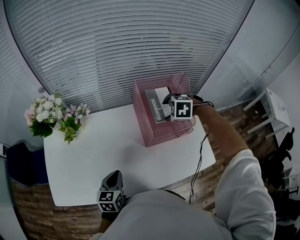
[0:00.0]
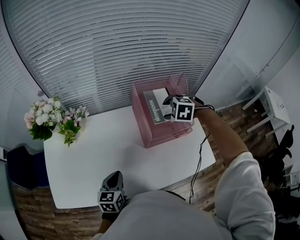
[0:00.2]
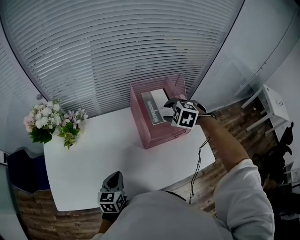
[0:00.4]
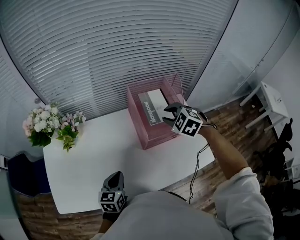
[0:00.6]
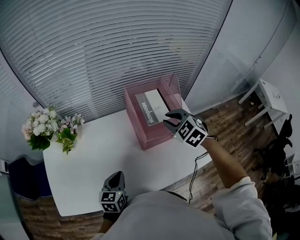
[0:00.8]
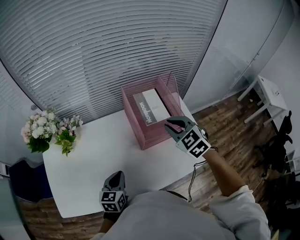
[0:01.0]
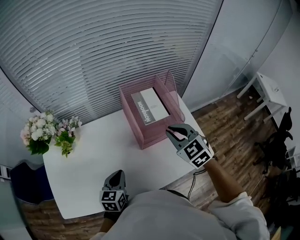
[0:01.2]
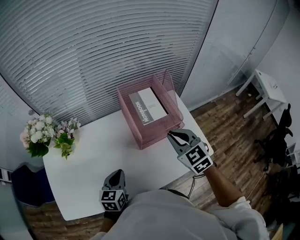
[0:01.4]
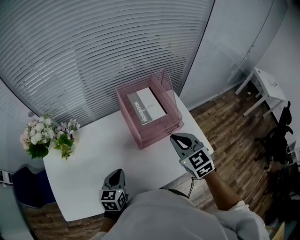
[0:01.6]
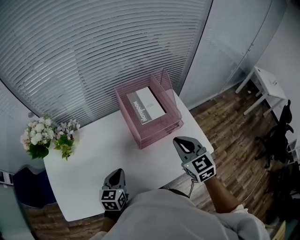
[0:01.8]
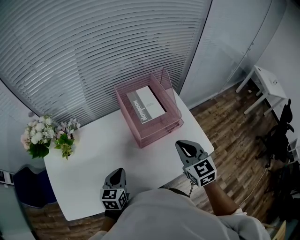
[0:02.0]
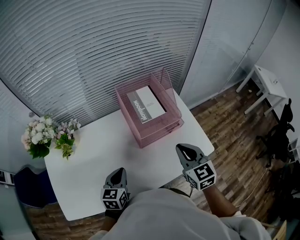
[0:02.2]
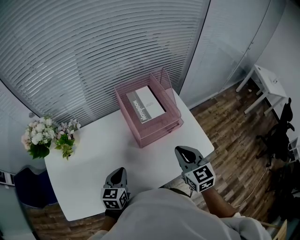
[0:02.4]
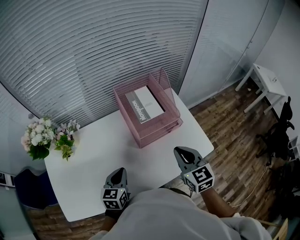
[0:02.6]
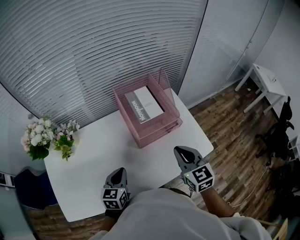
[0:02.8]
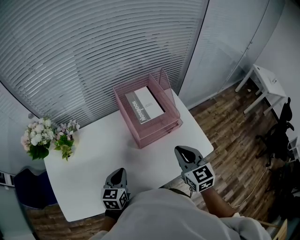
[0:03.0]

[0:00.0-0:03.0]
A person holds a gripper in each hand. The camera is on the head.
0:00.0 to 0:01.6: The right gripper ends up approximately 20 cm from where it was, tilts its fingers approximately 50 degrees upward, and closes. The left gripper moves some 5 cm.
0:01.6 to 0:03.0: The right gripper is displaced backward by some 5 cm.

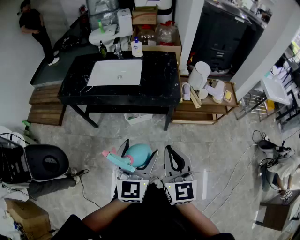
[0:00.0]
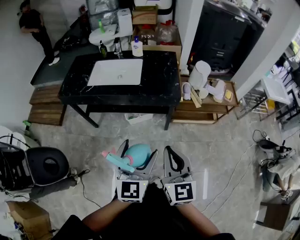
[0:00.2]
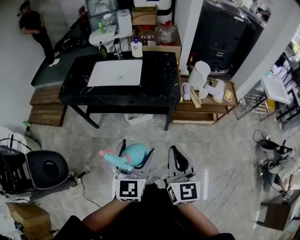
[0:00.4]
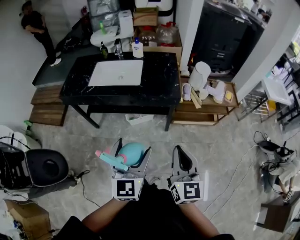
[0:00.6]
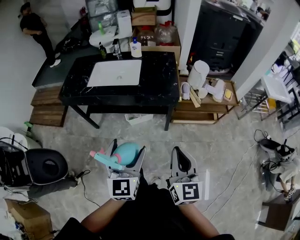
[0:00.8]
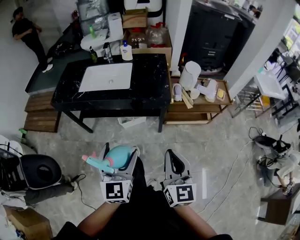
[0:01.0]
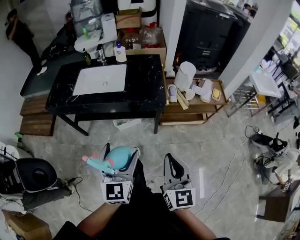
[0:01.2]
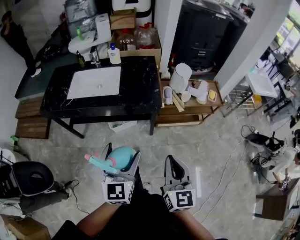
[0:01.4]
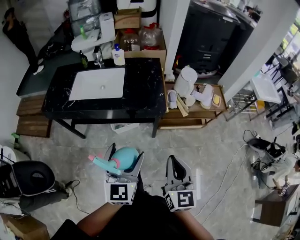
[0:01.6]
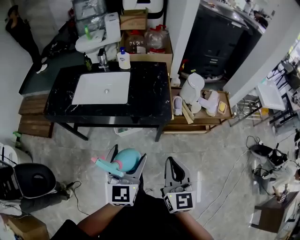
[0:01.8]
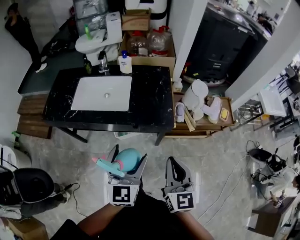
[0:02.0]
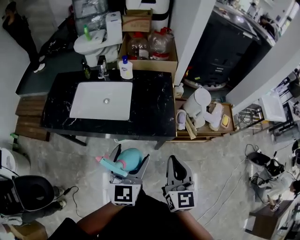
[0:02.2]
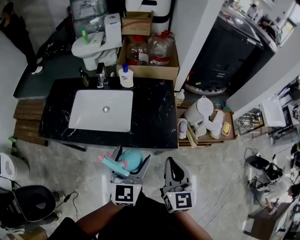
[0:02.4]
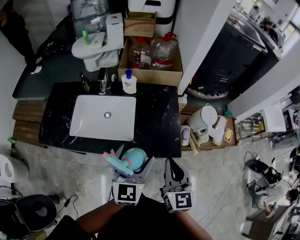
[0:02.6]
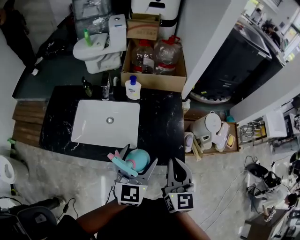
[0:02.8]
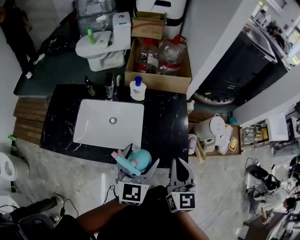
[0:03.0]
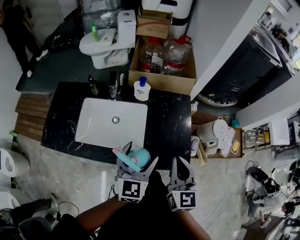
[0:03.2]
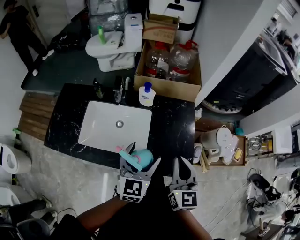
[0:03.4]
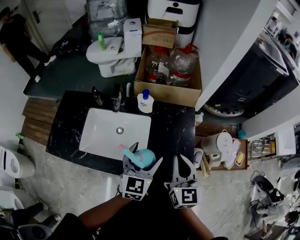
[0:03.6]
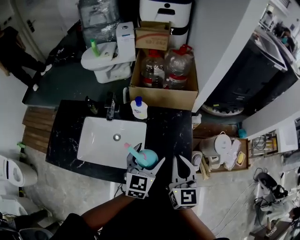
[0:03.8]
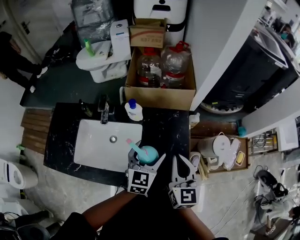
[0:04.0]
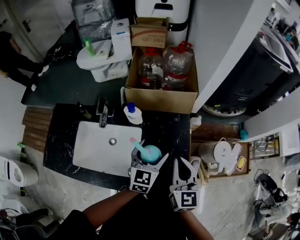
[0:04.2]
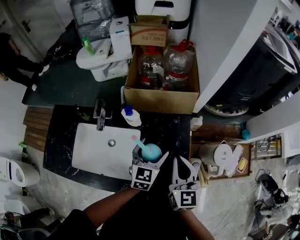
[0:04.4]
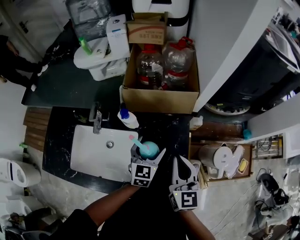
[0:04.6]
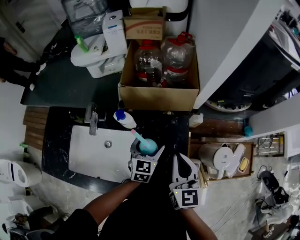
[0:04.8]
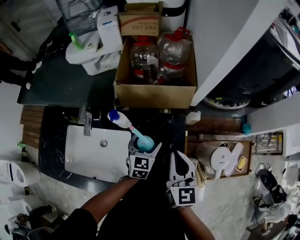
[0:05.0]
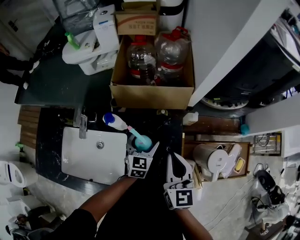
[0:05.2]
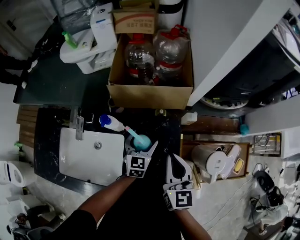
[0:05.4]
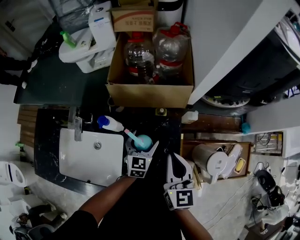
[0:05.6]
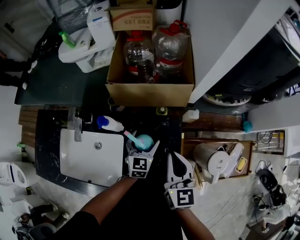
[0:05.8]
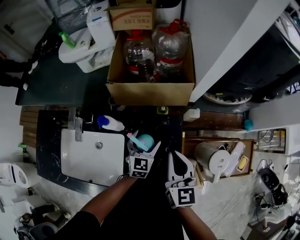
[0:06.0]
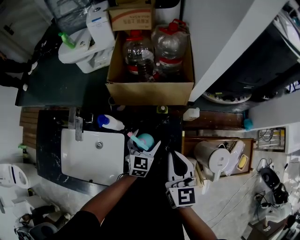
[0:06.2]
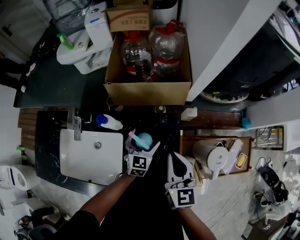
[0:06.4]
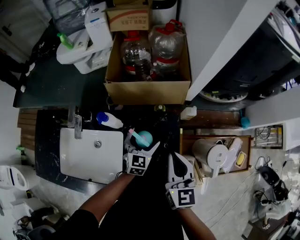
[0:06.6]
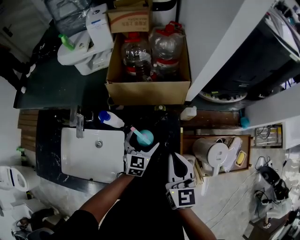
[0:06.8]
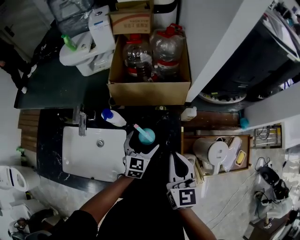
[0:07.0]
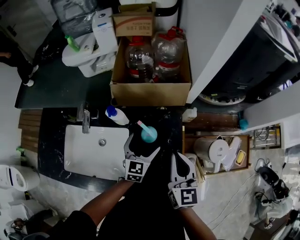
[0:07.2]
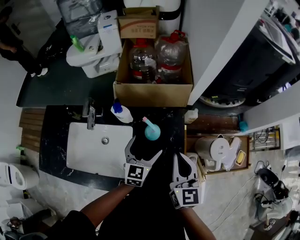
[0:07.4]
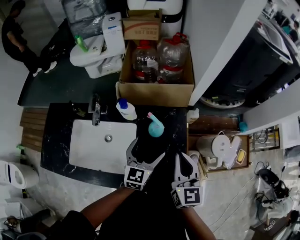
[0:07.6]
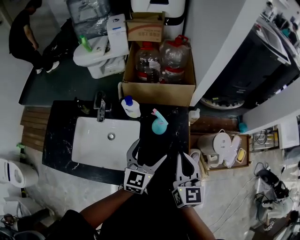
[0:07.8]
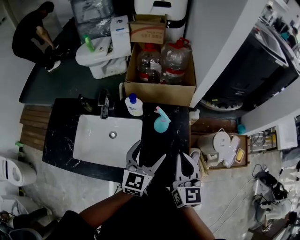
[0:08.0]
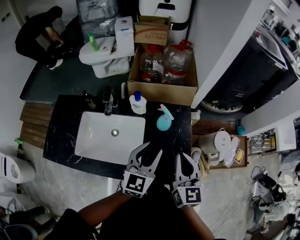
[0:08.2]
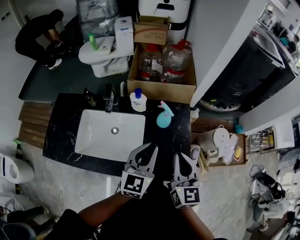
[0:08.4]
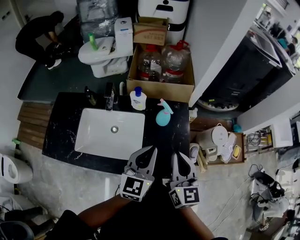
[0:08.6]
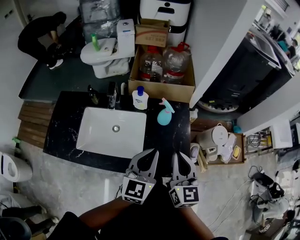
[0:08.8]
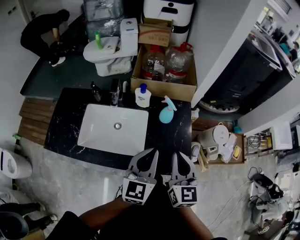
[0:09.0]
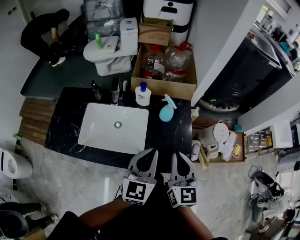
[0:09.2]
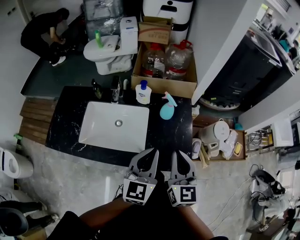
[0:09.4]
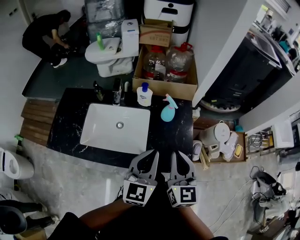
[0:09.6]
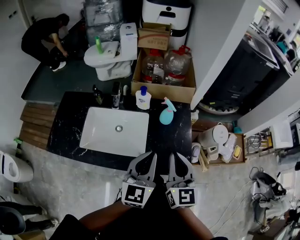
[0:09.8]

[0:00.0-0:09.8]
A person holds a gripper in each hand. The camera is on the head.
0:00.0 to 0:01.4: The left gripper goes about 5 cm forward, while the right gripper travels to the right by roughly 10 cm.
0:01.4 to 0:02.8: Both grippers move forward, roughly 35 cm.
0:02.8 to 0:04.2: The left gripper is displaced forward and downward by approximately 20 cm; the right gripper travels forward by approximately 15 cm.
0:04.2 to 0:05.6: The left gripper moves downward and forward, approximately 20 cm. Meanwhile the right gripper heads forward, covering some 10 cm.
0:05.6 to 0:07.0: The grippers make only small movements.
0:07.0 to 0:08.4: The right gripper travels backward by some 15 cm. Meanwhile the left gripper goes about 25 cm upward and backward, and closes.
0:08.4 to 0:09.8: The two grippers go some 5 cm backward.

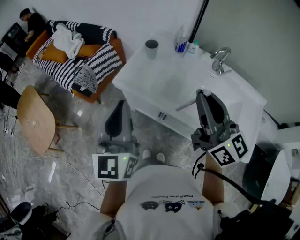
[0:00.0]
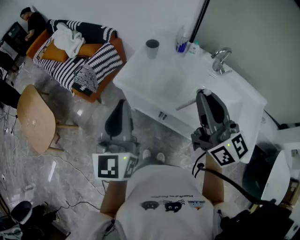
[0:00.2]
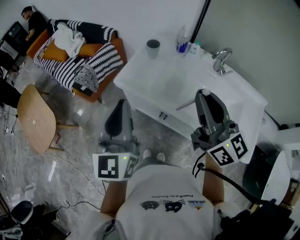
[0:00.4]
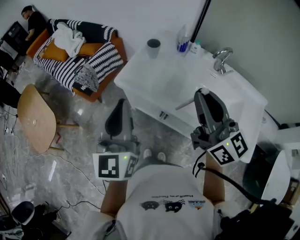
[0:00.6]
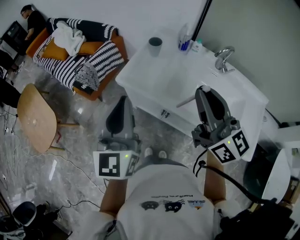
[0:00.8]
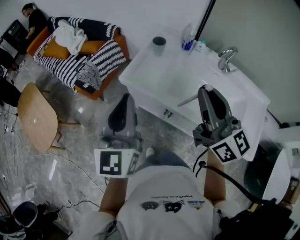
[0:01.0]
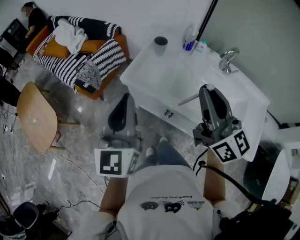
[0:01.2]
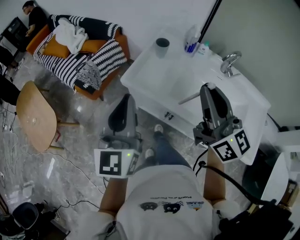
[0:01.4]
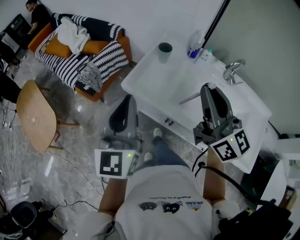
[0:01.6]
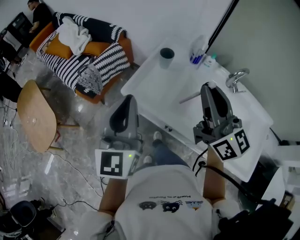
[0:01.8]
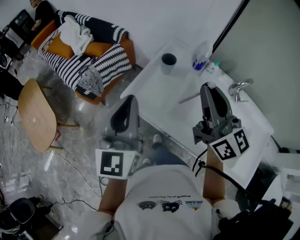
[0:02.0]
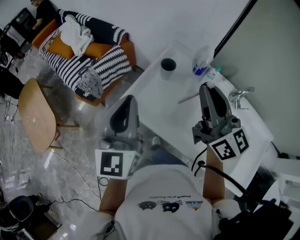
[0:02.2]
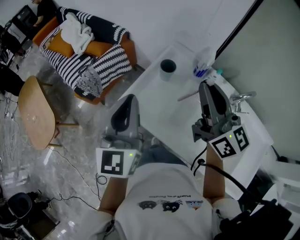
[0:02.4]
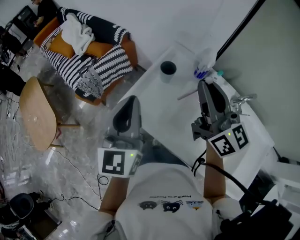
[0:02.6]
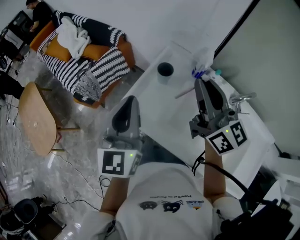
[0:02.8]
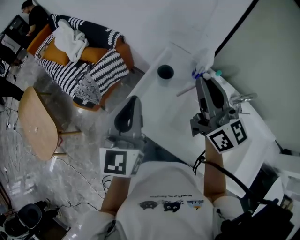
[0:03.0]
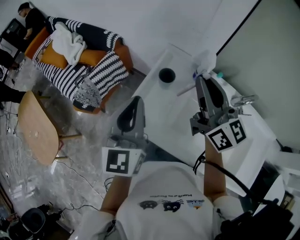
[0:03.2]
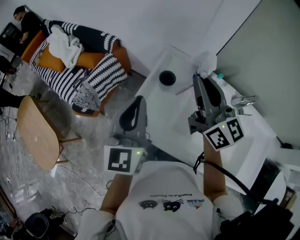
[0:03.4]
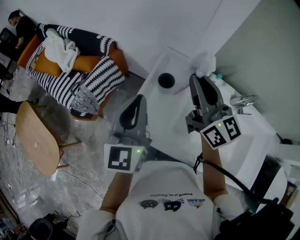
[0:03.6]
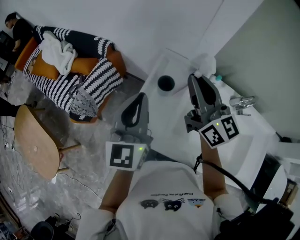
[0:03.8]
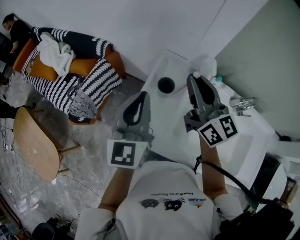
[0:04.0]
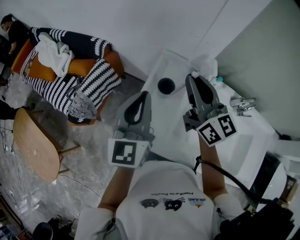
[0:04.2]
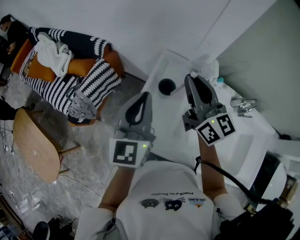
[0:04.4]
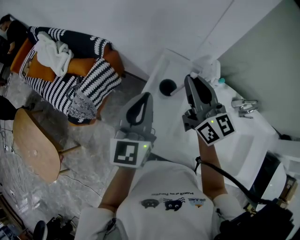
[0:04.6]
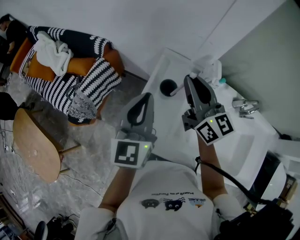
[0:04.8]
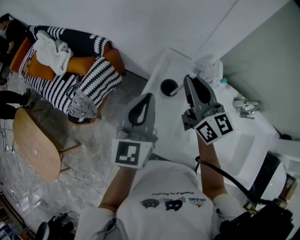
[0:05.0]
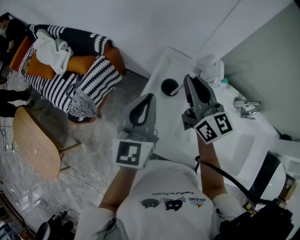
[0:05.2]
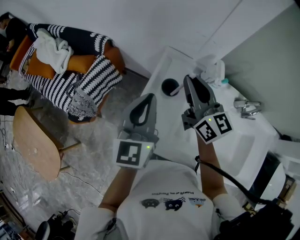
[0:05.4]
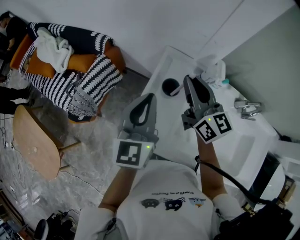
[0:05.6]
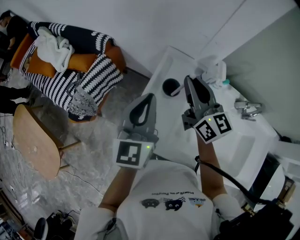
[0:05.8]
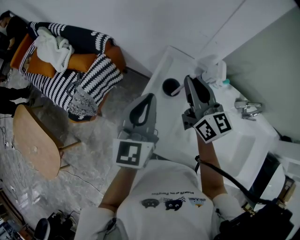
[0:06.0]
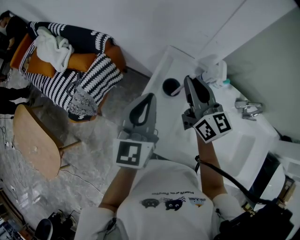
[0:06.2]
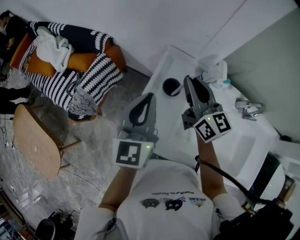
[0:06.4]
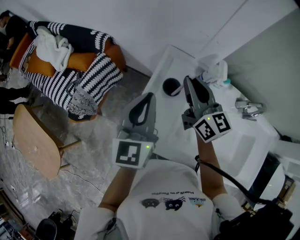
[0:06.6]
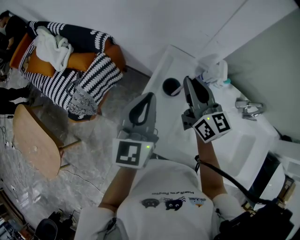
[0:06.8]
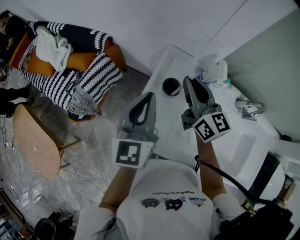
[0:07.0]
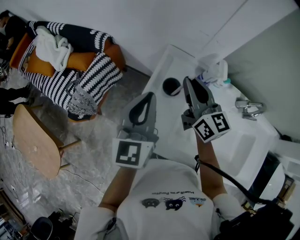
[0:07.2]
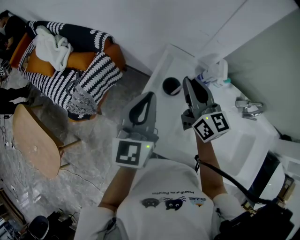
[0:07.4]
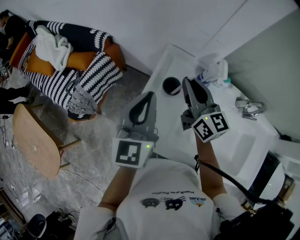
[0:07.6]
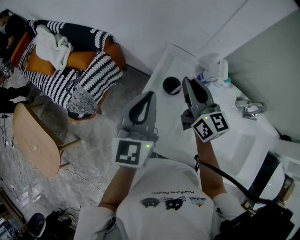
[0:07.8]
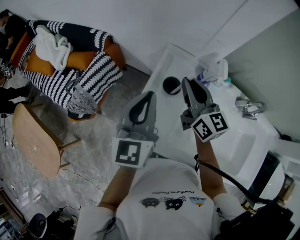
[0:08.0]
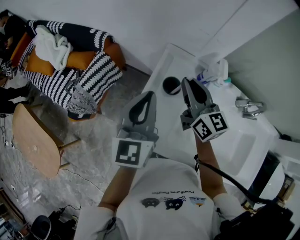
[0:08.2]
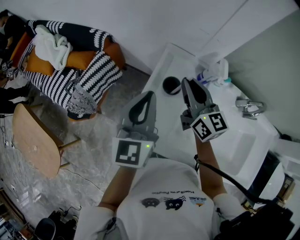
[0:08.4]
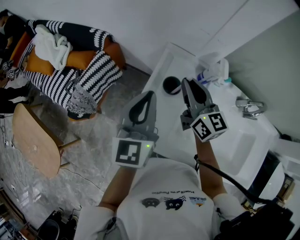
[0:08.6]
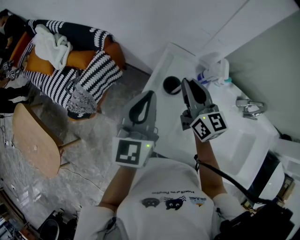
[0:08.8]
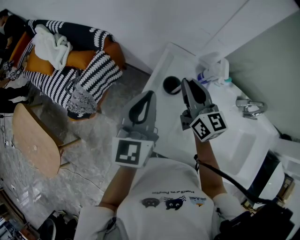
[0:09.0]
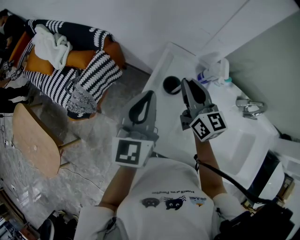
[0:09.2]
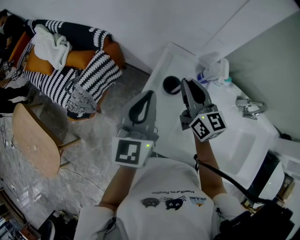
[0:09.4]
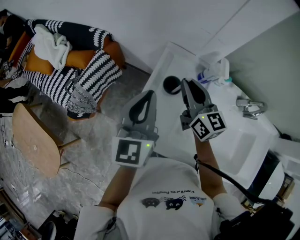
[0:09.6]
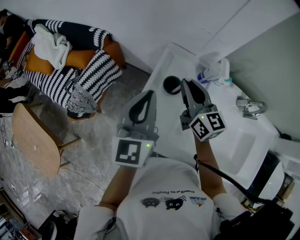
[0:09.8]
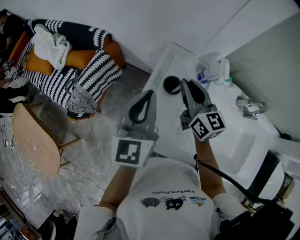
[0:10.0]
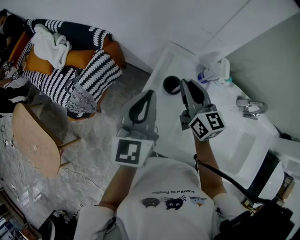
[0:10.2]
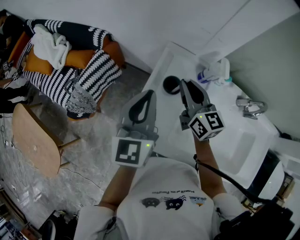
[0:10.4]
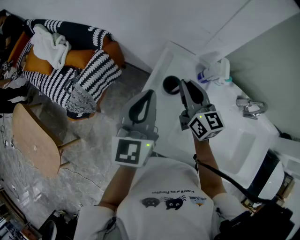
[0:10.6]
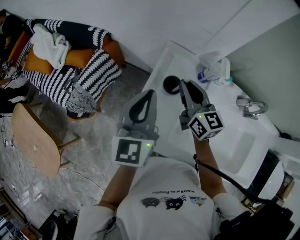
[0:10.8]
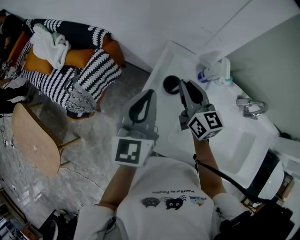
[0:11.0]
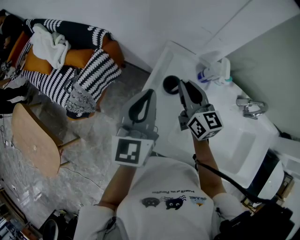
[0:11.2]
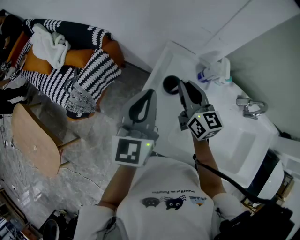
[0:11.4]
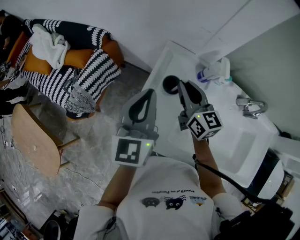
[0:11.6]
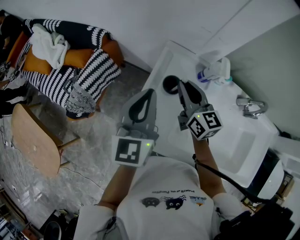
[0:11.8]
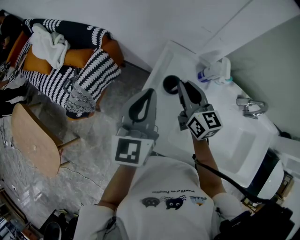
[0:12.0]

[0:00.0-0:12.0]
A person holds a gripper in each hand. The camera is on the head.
0:00.0 to 0:01.6: Both grippers travel together forward, about 5 cm.
0:01.6 to 0:03.0: The right gripper heads forward, covering some 20 cm; the left gripper moves forward and to the right, some 20 cm.
0:03.0 to 0:04.4: The right gripper shifts about 10 cm forward and downward. The left gripper shifts about 10 cm forward.
0:04.4 to 0:06.0: The right gripper changes place by some 5 cm.
0:06.0 to 0:09.0: The grippers make only small movements.
0:09.0 to 0:12.0: The grippers make only small movements.
